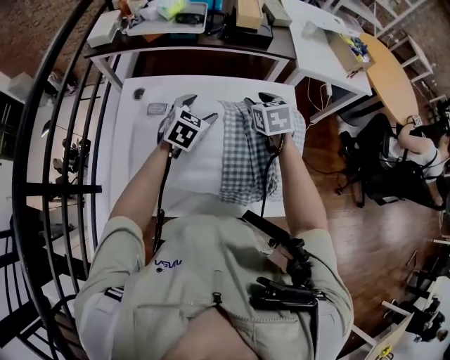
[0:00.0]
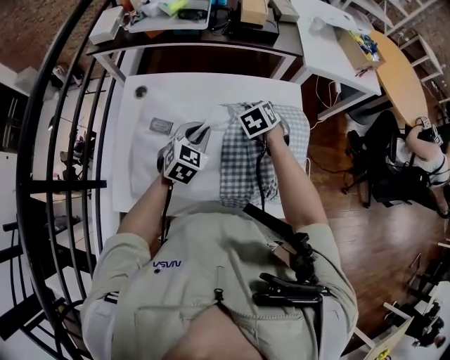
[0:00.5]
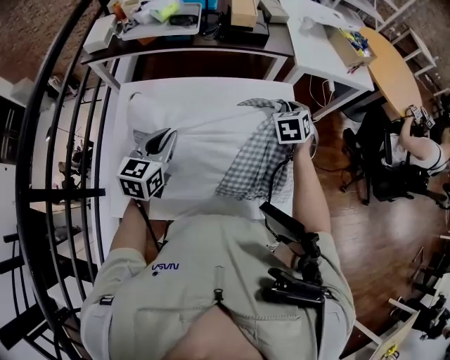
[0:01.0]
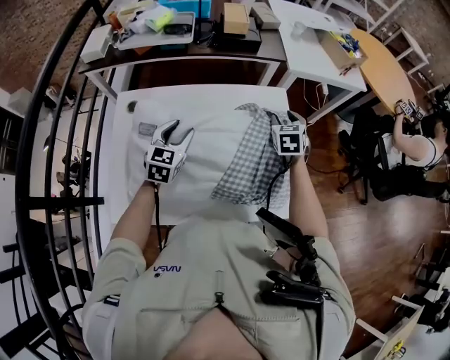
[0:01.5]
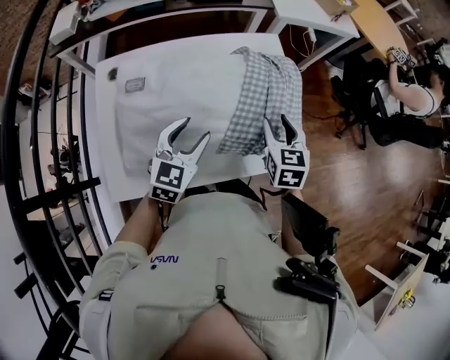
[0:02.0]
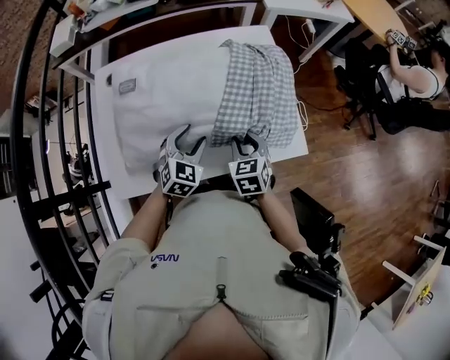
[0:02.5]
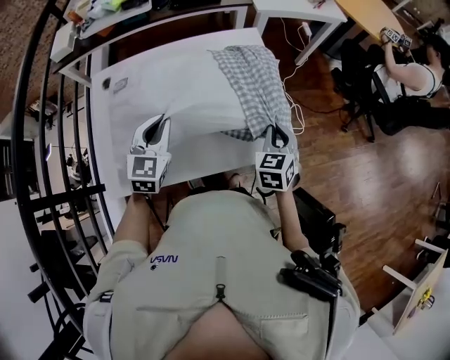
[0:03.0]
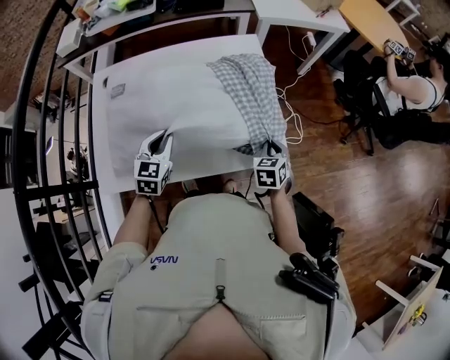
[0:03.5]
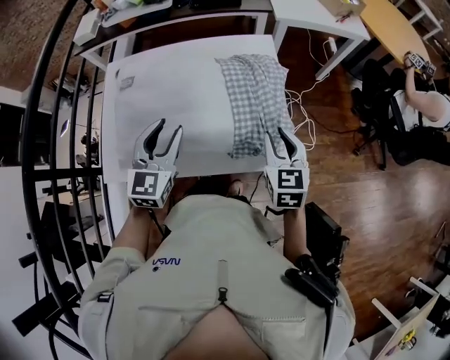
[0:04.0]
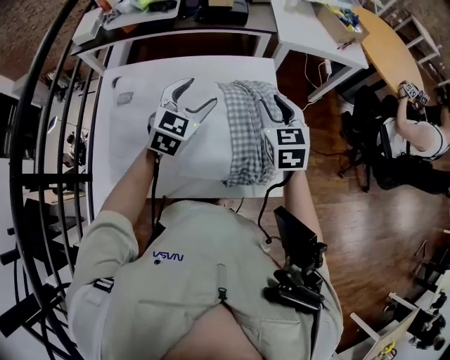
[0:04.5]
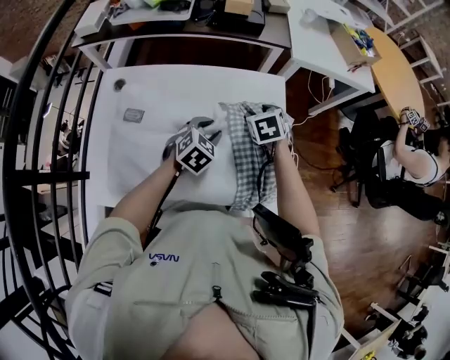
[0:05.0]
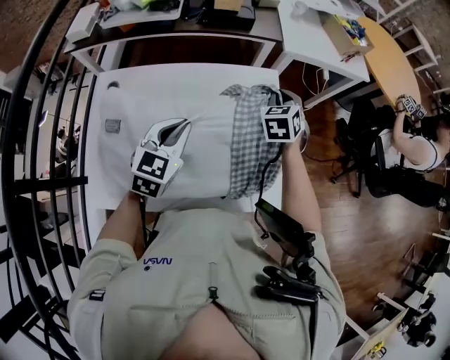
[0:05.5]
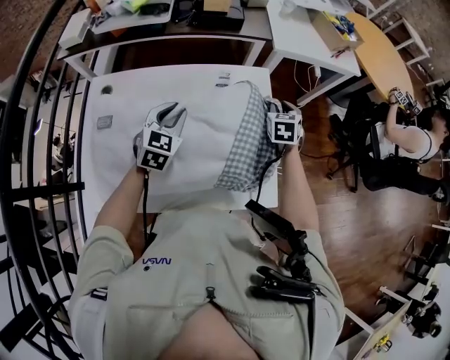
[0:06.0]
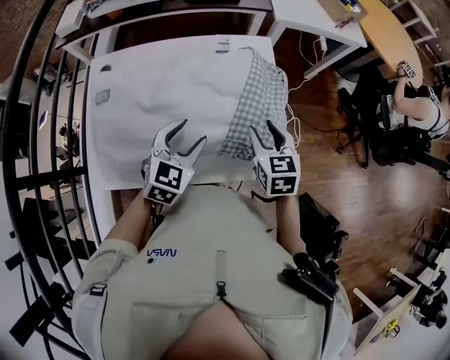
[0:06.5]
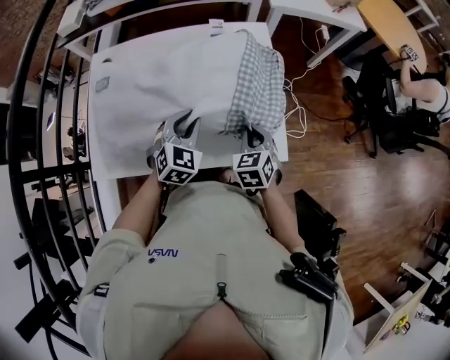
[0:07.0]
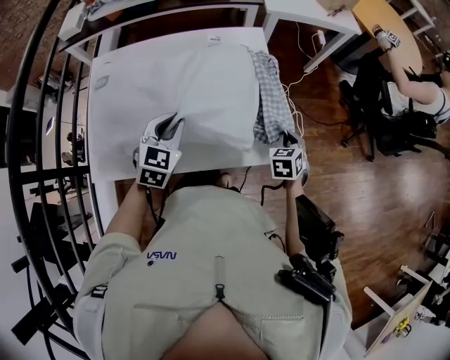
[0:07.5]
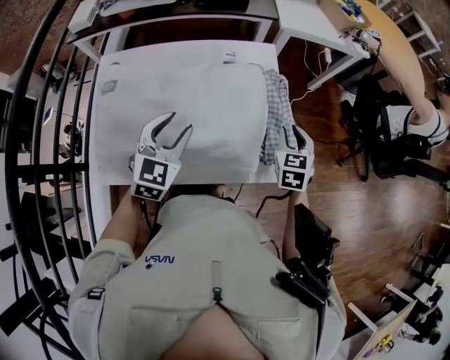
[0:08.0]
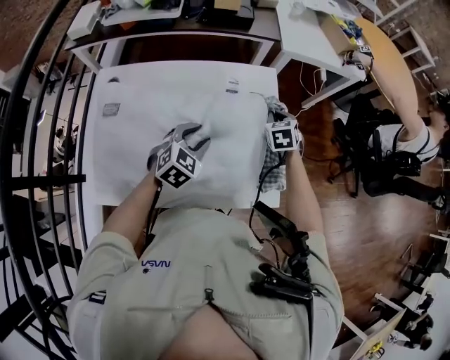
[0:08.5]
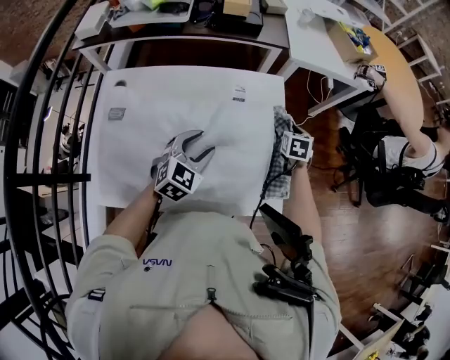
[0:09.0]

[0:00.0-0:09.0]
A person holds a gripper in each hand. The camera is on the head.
0:00.0 to 0:02.0: The left gripper swings forward and backward, some 15 cm each way, with 2 reversals, and closes, then reopens; the right gripper heads backward and to the right, covering roughly 20 cm, turns by roughly 20 degrees, and closes, then opens again.
0:02.0 to 0:04.5: The right gripper moves forward and upward, about 15 cm, and closes, then reopens; the left gripper shifts roughly 15 cm forward and to the right, and closes, then reopens.
0:04.5 to 0:07.0: The right gripper shifts roughly 20 cm backward and downward, changes its angle by some 20 degrees, and closes its fingers. The left gripper goes forward and backward, approximately 15 cm each way, reversing 2 times, and closes its fingers.
0:07.0 to 0:09.0: The right gripper goes roughly 25 cm forward, turns by some 20 degrees, and opens up; the left gripper travels forward by approximately 5 cm, goes upward and returns, approximately 10 cm each way, and opens.

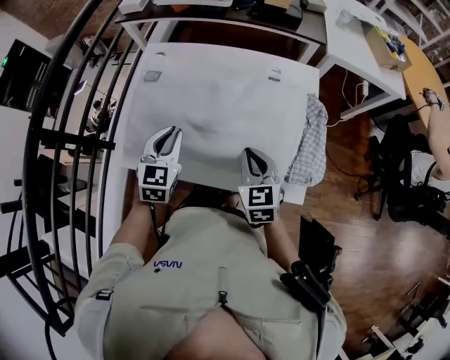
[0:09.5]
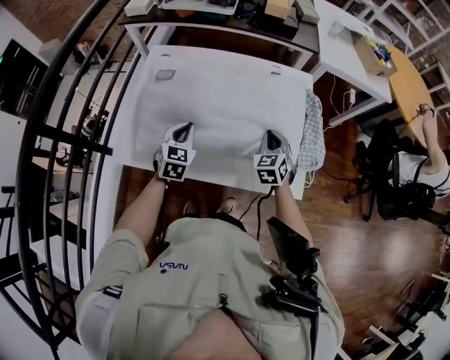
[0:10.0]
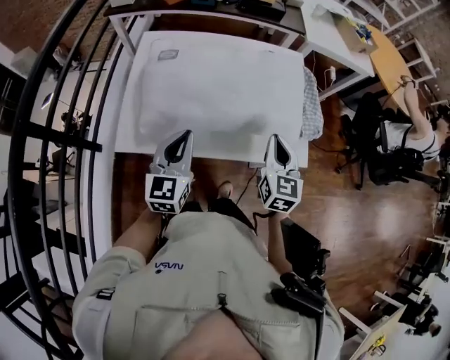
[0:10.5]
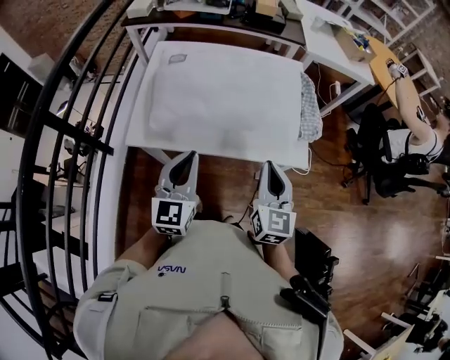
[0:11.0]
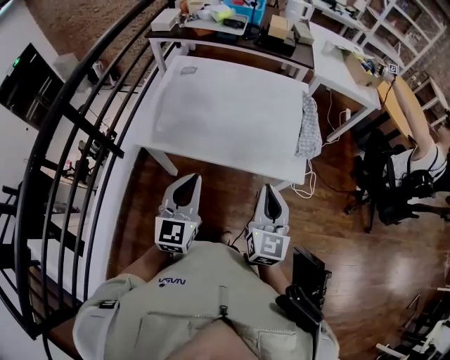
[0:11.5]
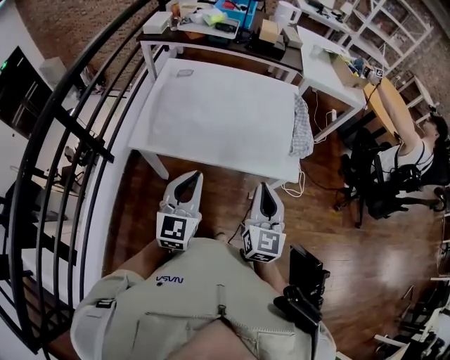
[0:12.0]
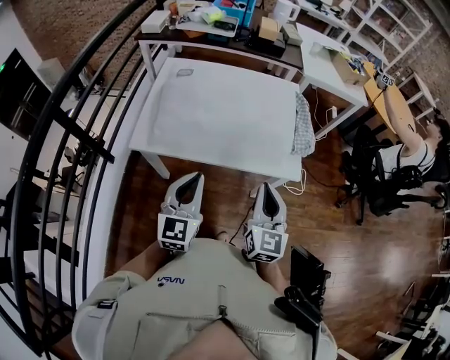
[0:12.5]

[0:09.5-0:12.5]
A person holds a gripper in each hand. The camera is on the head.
0:09.5 to 0:11.0: The left gripper heads backward, covering roughly 20 cm, and rotates some 20 degrees, while the right gripper goes approximately 20 cm backward and upward, and rotates approximately 30 degrees.
0:11.0 to 0:12.5: Both grippers move backward, about 5 cm.

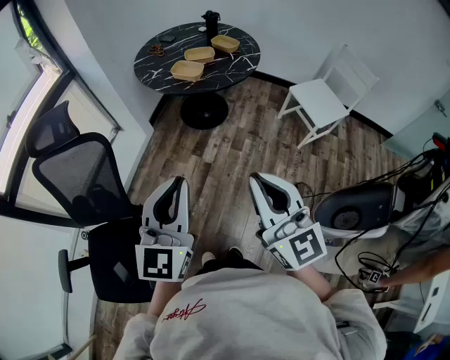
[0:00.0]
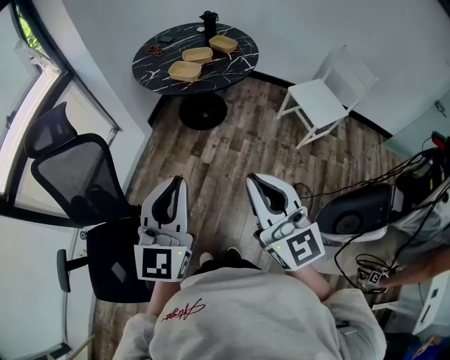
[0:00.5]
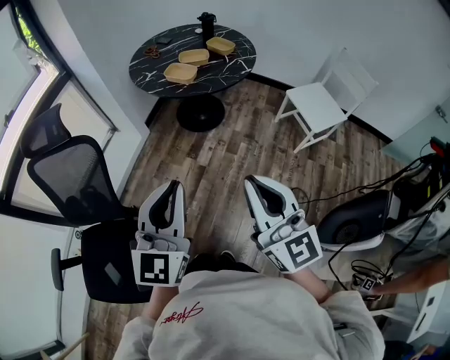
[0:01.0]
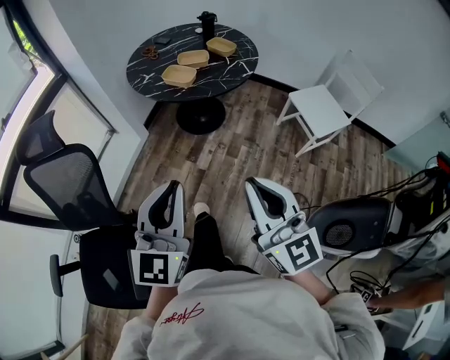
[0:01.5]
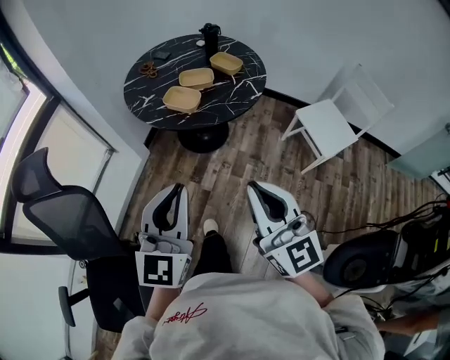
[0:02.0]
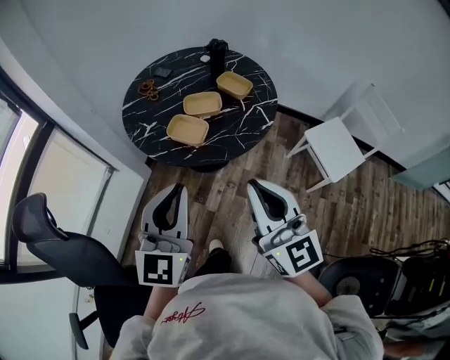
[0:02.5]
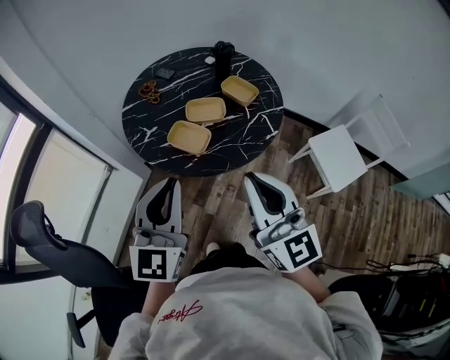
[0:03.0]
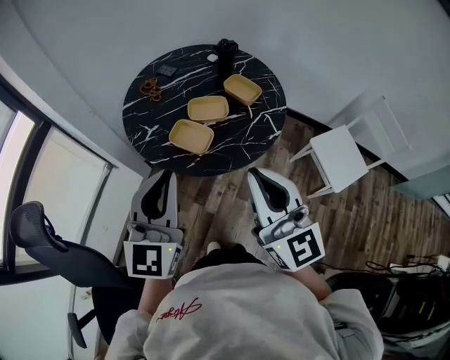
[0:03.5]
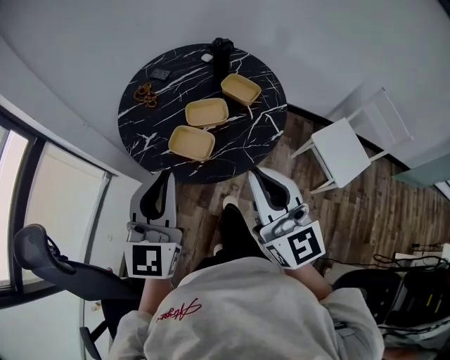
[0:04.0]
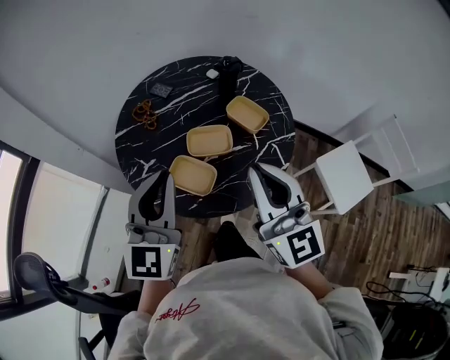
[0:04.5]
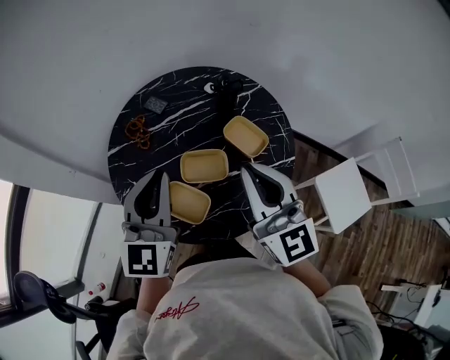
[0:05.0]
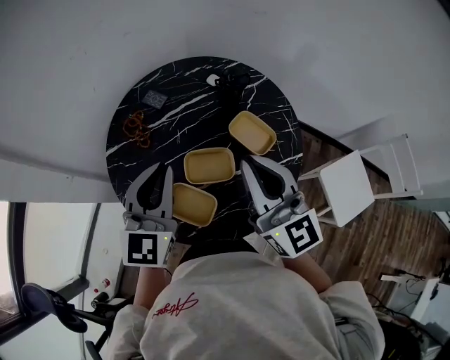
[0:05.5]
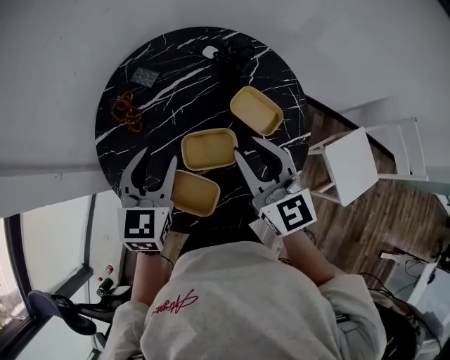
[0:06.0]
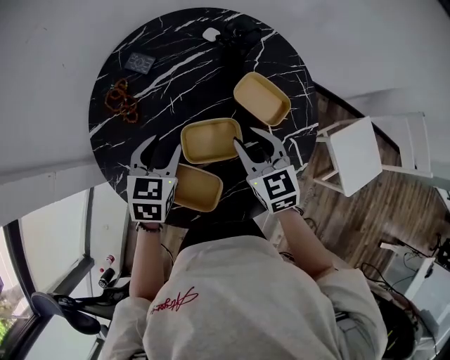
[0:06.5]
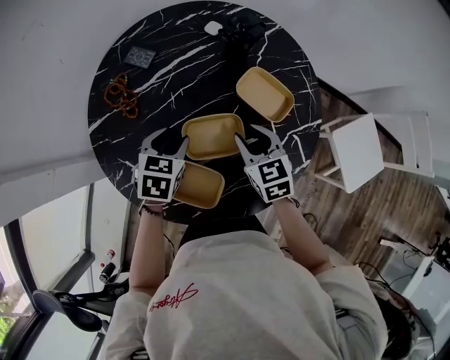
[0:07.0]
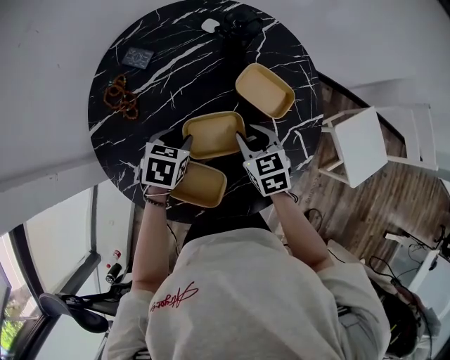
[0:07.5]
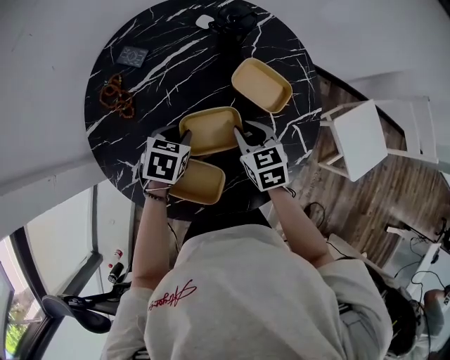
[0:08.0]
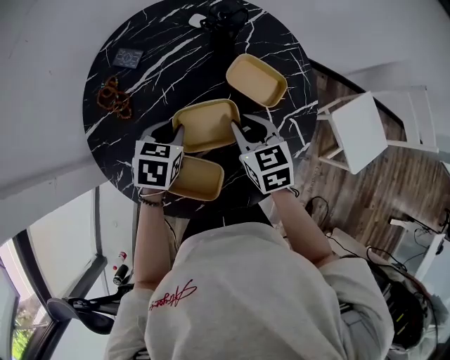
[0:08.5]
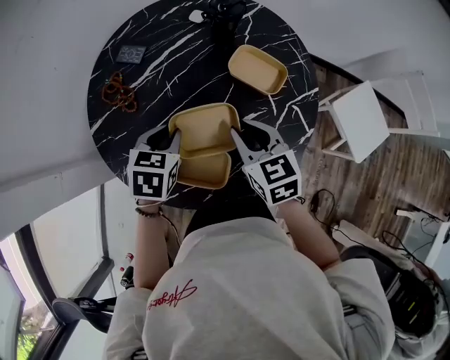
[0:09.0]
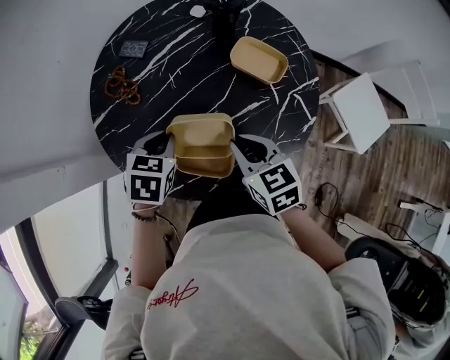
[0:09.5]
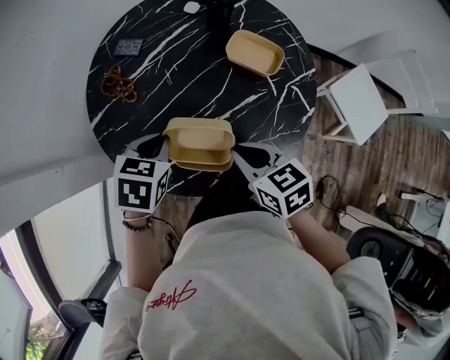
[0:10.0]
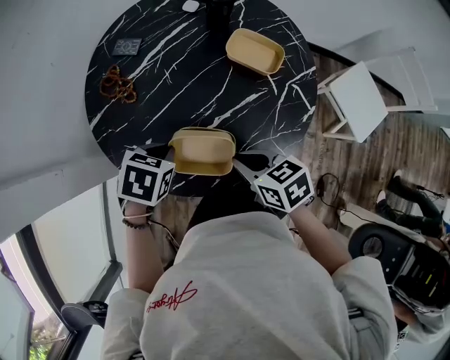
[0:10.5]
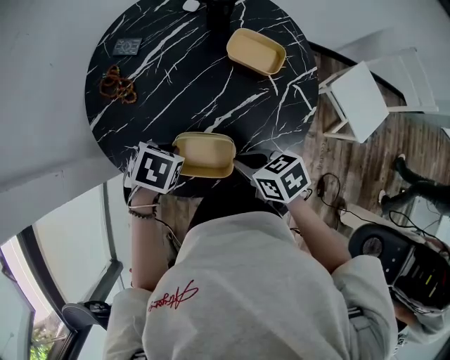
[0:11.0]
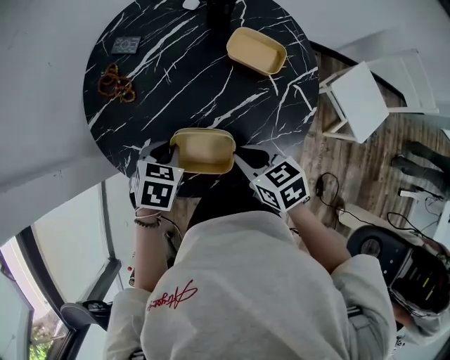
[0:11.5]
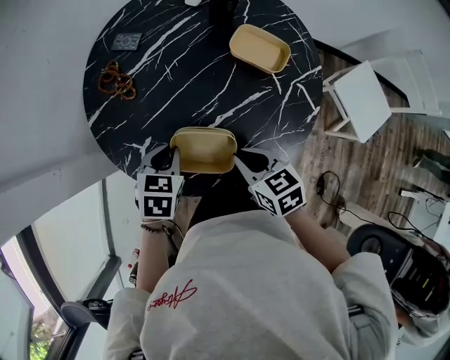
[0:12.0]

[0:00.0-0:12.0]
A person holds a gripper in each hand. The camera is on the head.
0:00.0 to 0:02.0: Both grippers move forward, about 20 cm.
0:02.0 to 0:04.0: Both grippers travel together forward, roughly 30 cm.
0:04.0 to 0:06.0: The left gripper moves forward and downward, roughly 35 cm, changes its angle by approximately 30 degrees, and opens. The right gripper heads forward, covering about 35 cm, and opens its fingers.
0:06.0 to 0:08.0: The grippers both shift downward by about 20 cm. The left gripper points its fingers about 40 degrees further downward, and closes up. Meanwhile the right gripper angles its fingers downward, by roughly 30 degrees.
0:08.0 to 0:10.0: The left gripper is displaced upward, backward and to the left by about 15 cm, while the right gripper goes some 20 cm backward, upward and to the left.
0:10.0 to 0:12.0: Both grippers move downward, some 5 cm.

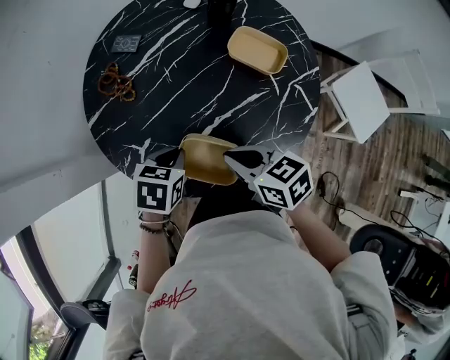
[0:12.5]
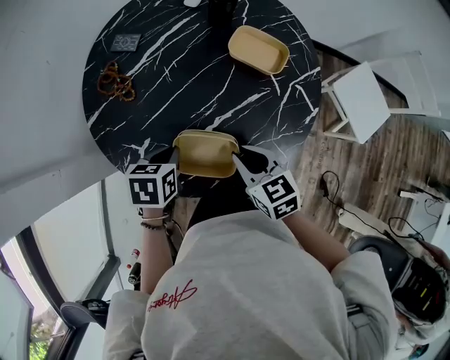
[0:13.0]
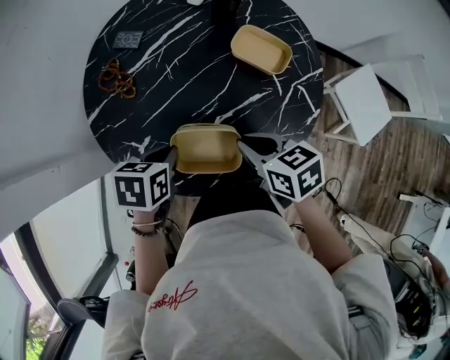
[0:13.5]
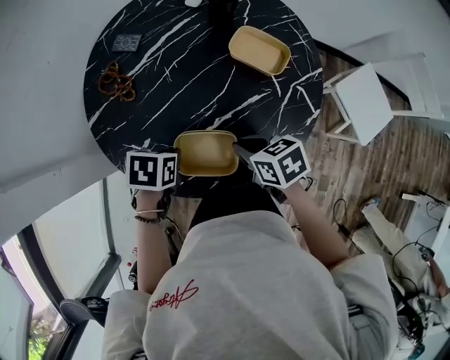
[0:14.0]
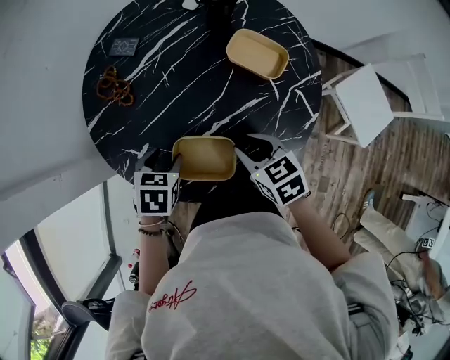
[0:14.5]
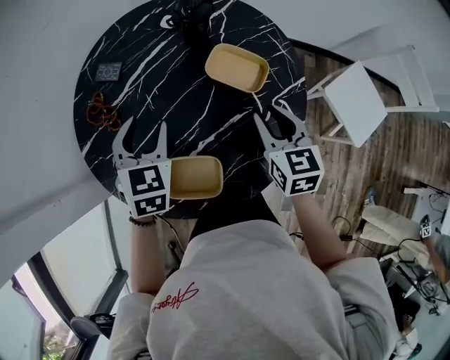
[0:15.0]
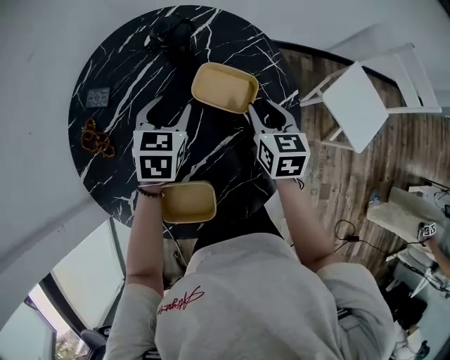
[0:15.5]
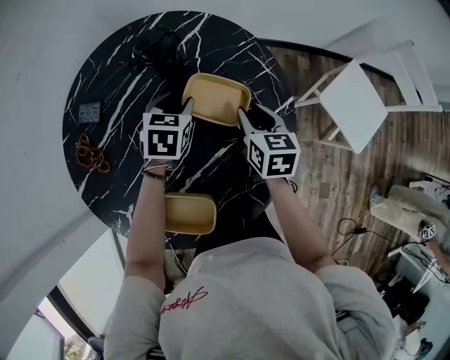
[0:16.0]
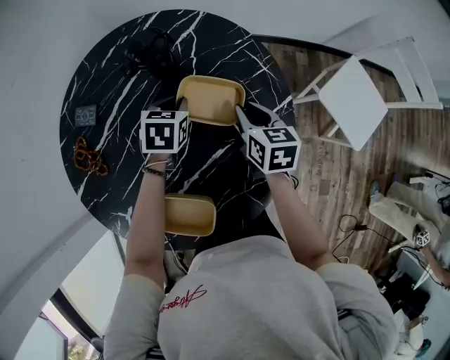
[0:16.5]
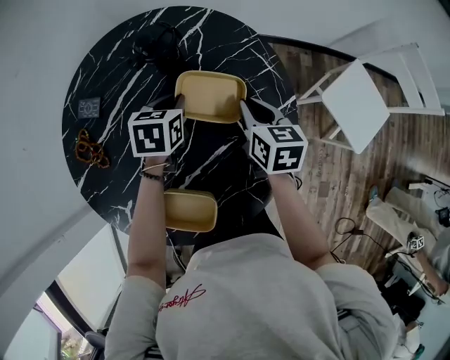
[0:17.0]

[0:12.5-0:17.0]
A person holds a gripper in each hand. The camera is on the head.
0:12.5 to 0:14.5: The right gripper travels to the right by roughly 5 cm, and opens up. Meanwhile the left gripper opens.
0:14.5 to 0:17.0: The two grippers go roughly 30 cm forward and to the right. The left gripper closes up, while the right gripper changes its angle by about 40 degrees, and closes its fingers.
